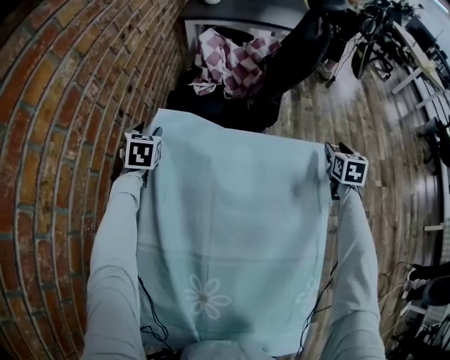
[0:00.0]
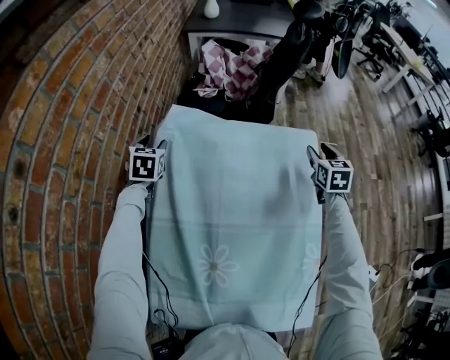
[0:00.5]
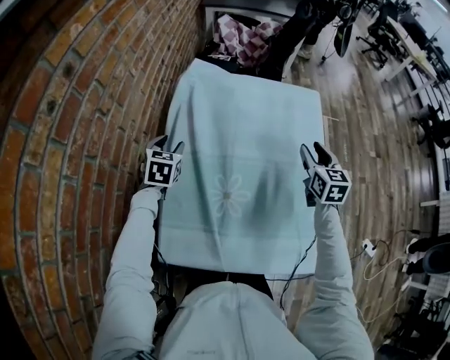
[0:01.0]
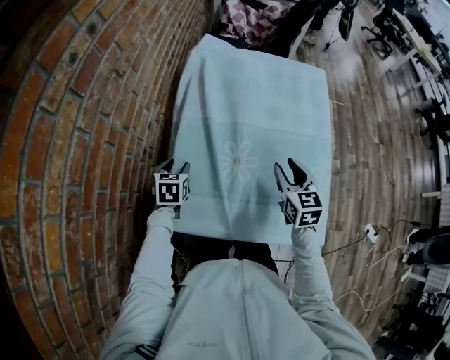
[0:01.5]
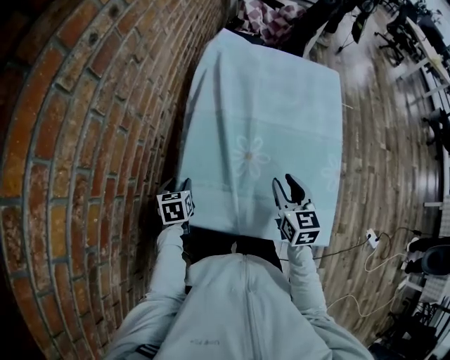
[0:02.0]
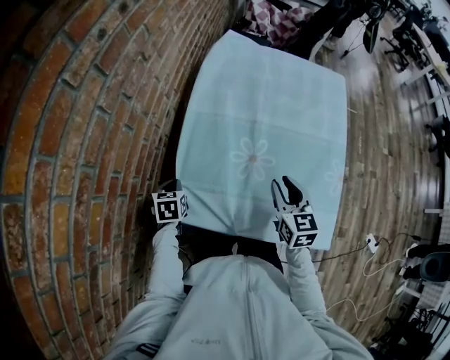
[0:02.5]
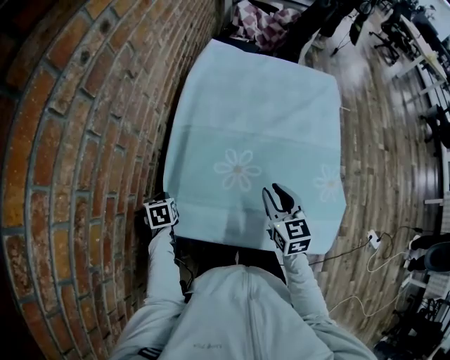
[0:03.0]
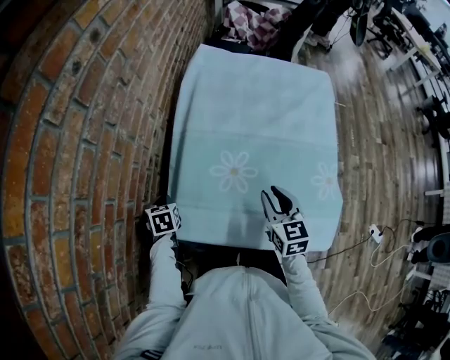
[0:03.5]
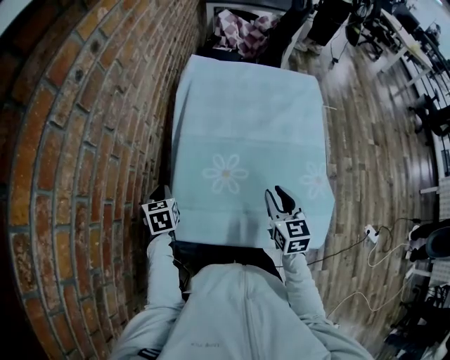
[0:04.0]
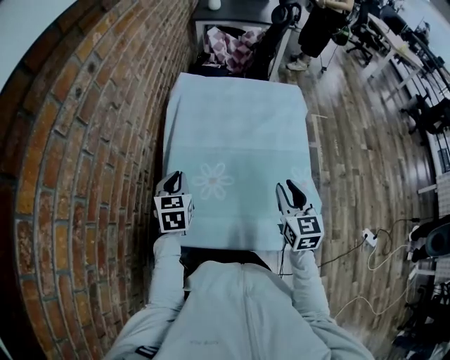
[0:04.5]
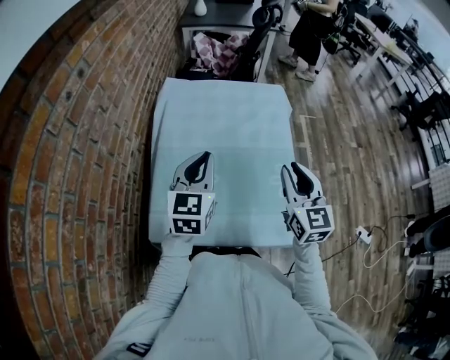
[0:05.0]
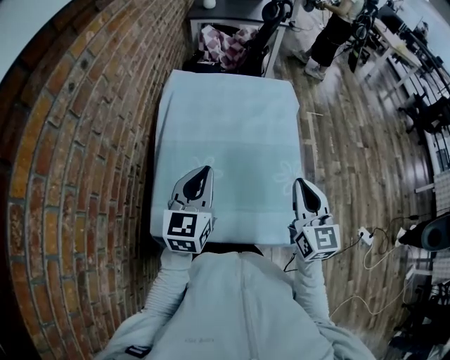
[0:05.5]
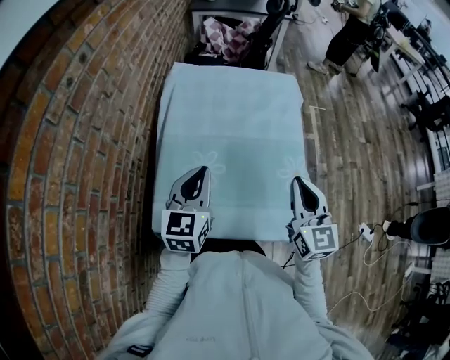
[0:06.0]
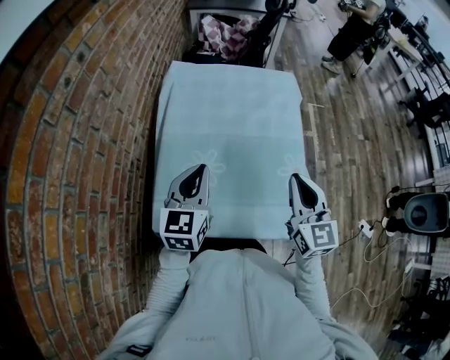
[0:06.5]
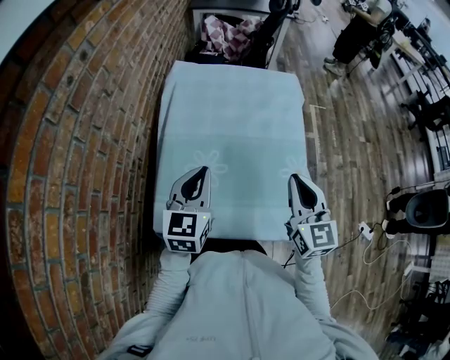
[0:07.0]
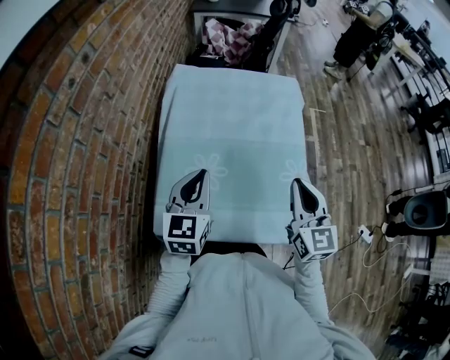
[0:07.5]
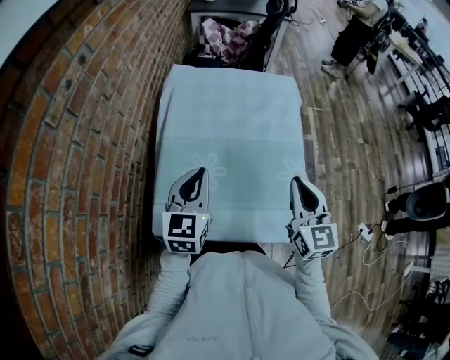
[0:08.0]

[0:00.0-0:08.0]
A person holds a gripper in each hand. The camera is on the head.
0:00.0 to 0:02.0: The pair of grippers is taken backward and to the left, some 60 cm. The right gripper changes its angle by some 30 degrees; the left gripper turns by approximately 30 degrees.
0:02.0 to 0:04.0: The left gripper heads upward, covering approximately 5 cm, and closes.
0:04.0 to 0:06.0: The right gripper heads upward and to the right, covering approximately 20 cm, changes its angle by some 20 degrees, and closes its fingers; the left gripper travels to the right and upward by roughly 30 cm, and points its fingers roughly 30 degrees further upward.
0:06.0 to 0:08.0: The grippers make only small movements.

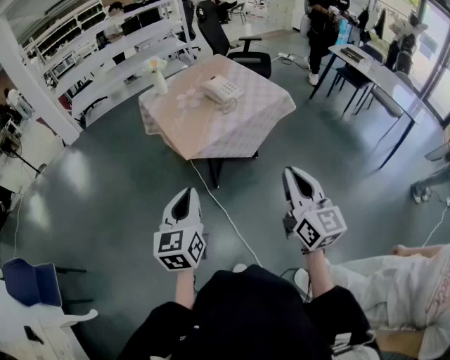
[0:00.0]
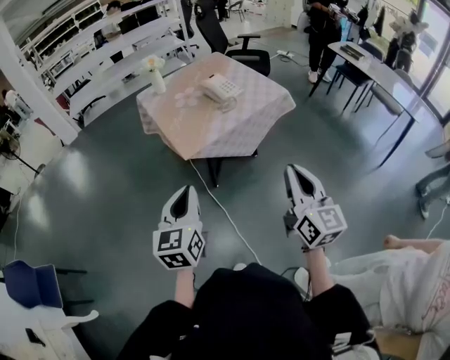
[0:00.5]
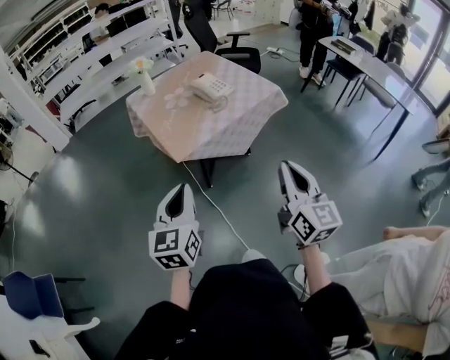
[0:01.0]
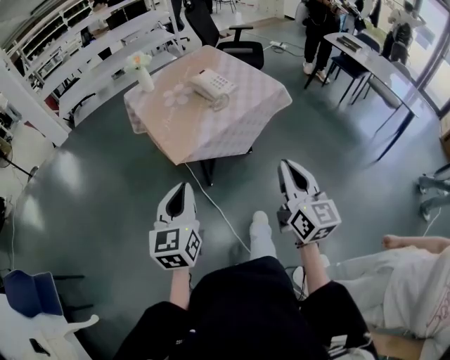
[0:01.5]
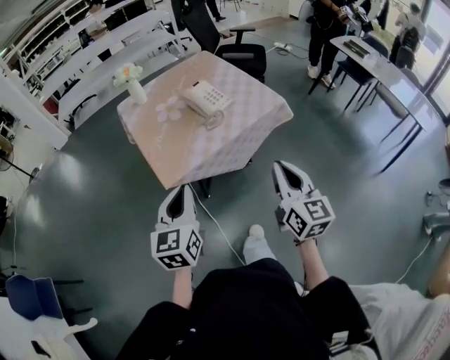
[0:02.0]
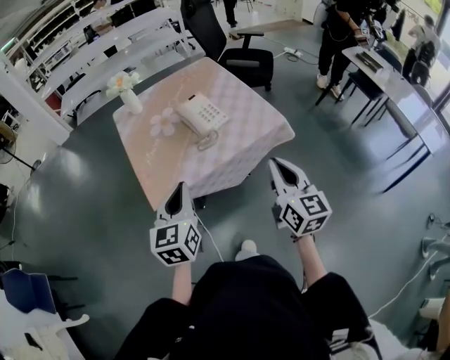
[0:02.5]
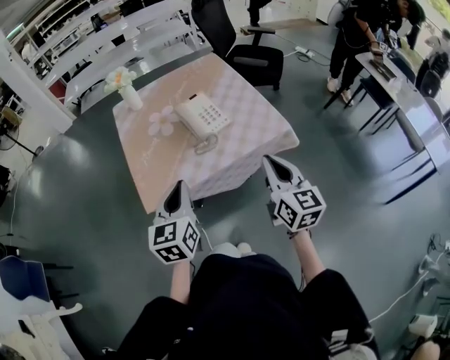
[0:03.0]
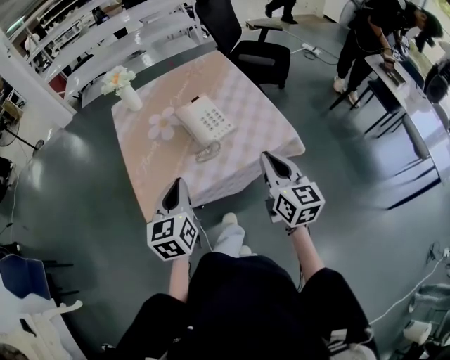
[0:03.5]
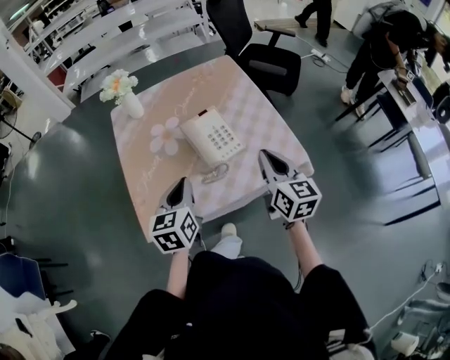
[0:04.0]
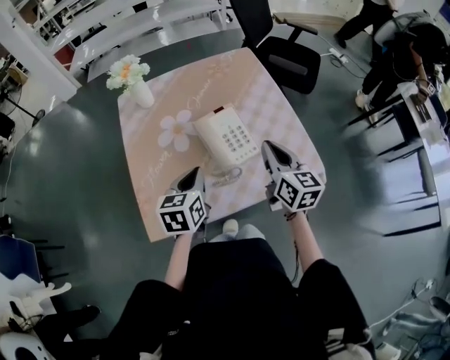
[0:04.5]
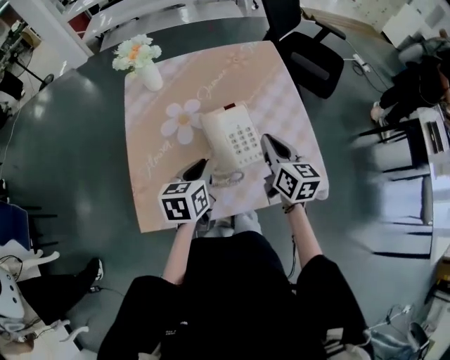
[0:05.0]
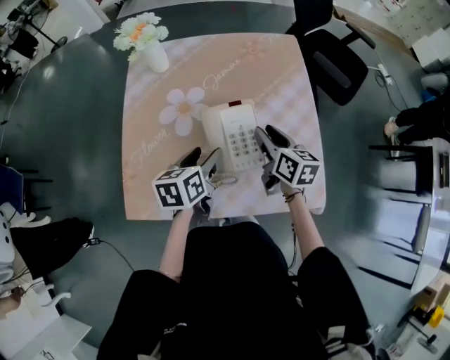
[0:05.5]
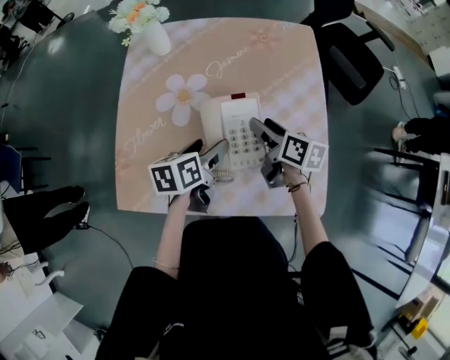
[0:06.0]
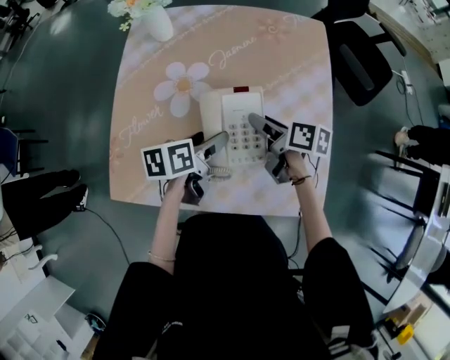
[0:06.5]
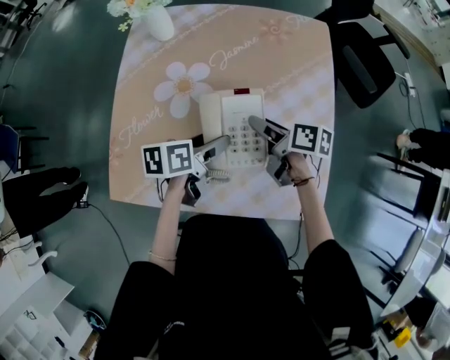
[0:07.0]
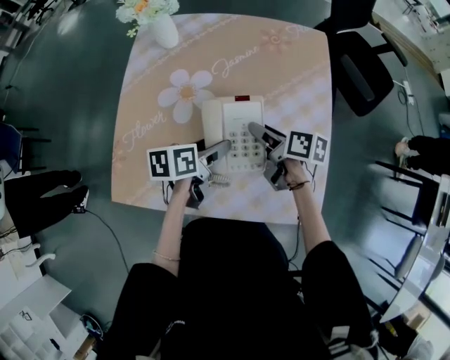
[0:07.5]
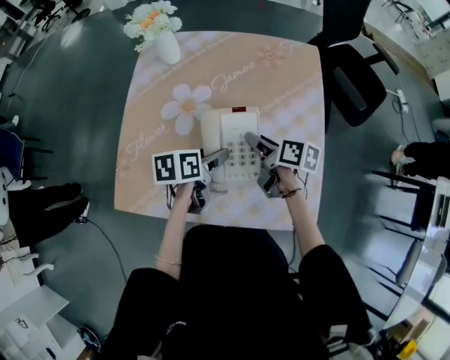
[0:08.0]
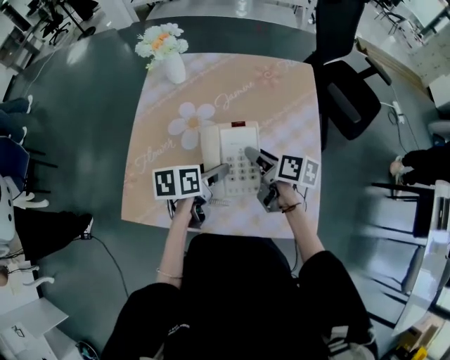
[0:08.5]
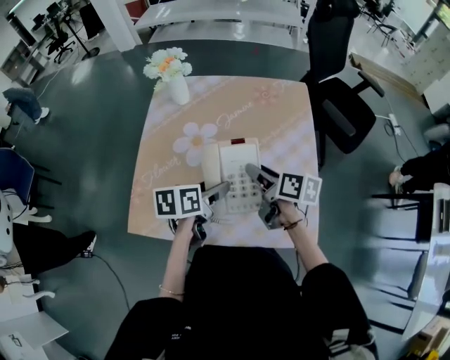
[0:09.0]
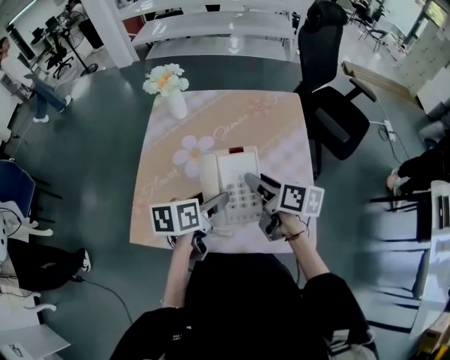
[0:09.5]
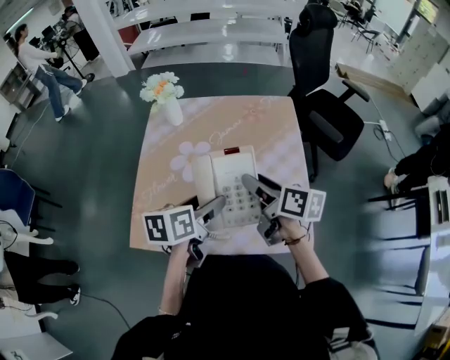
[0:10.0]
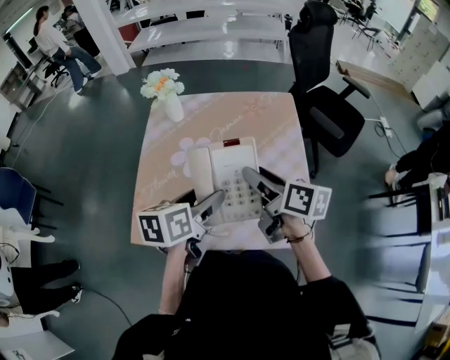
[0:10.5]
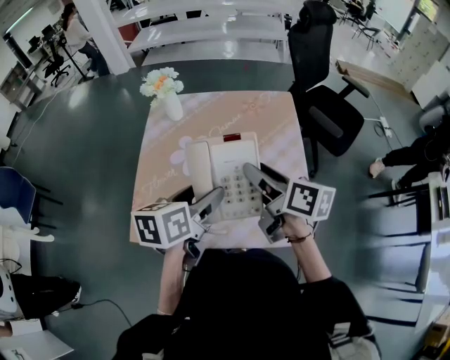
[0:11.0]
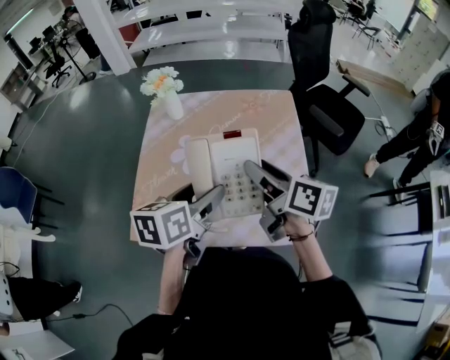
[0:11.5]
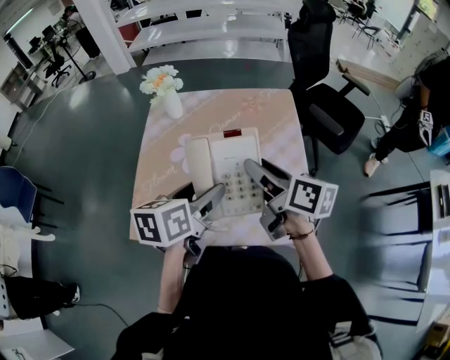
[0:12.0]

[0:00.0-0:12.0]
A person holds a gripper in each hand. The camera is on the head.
0:00.0 to 0:02.0: The grippers both shift forward by approximately 20 cm.
0:02.0 to 0:04.0: Both grippers move forward, about 35 cm.
0:04.0 to 0:06.0: The right gripper shifts roughly 30 cm forward and downward, swivels some 50 degrees, and opens. The left gripper goes about 20 cm forward, downward and to the right, changes its angle by about 40 degrees, and opens.
0:08.0 to 0:10.0: The grippers both shift upward by some 15 cm.
0:10.0 to 0:12.0: The right gripper travels upward by approximately 5 cm.

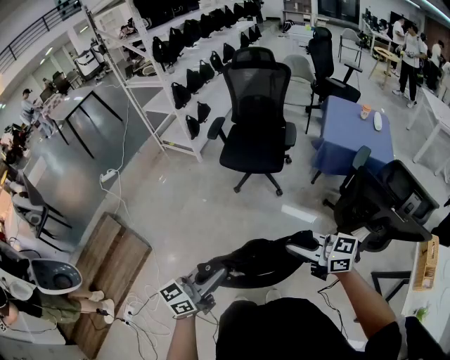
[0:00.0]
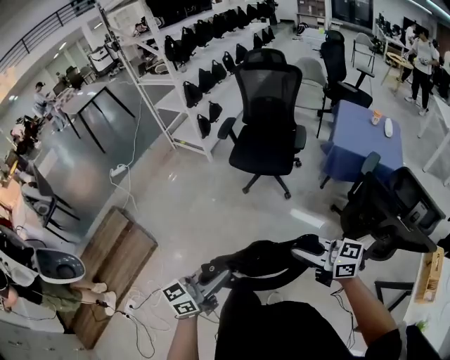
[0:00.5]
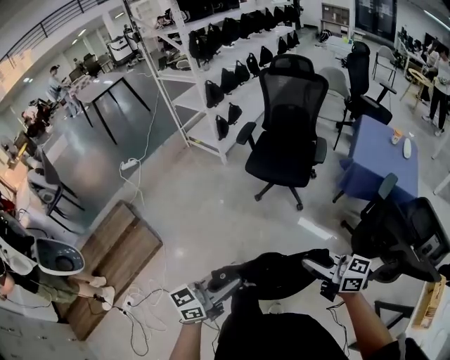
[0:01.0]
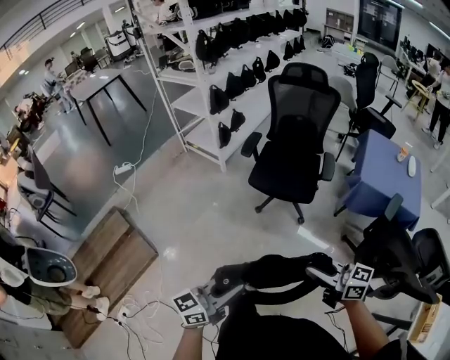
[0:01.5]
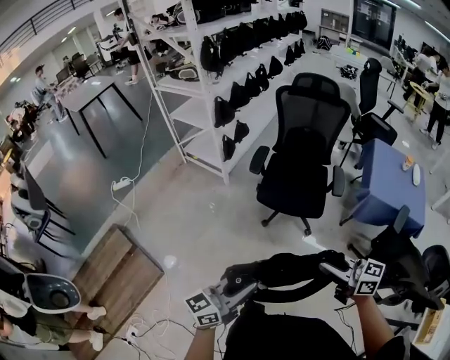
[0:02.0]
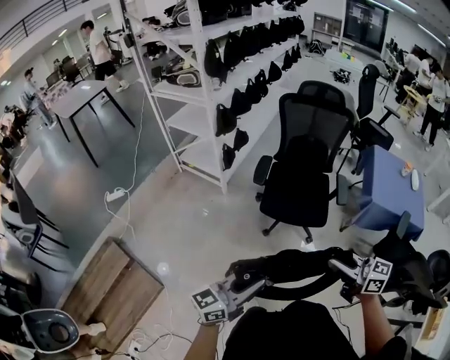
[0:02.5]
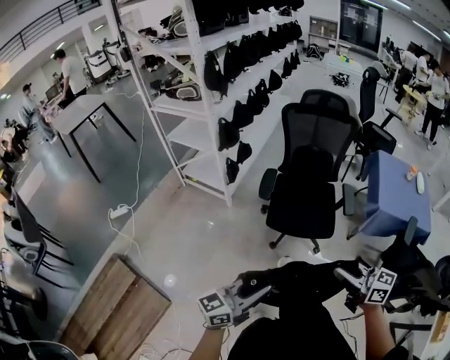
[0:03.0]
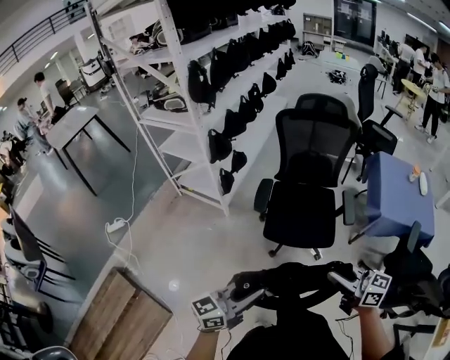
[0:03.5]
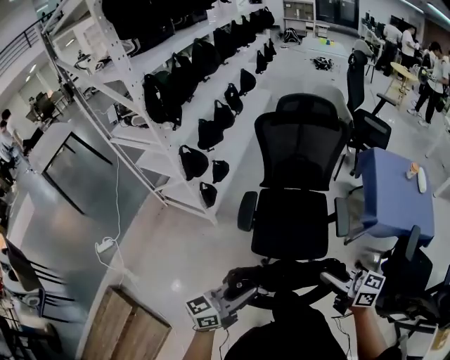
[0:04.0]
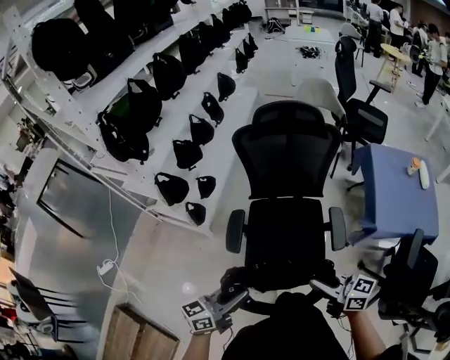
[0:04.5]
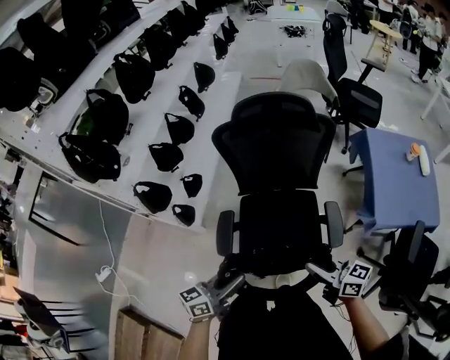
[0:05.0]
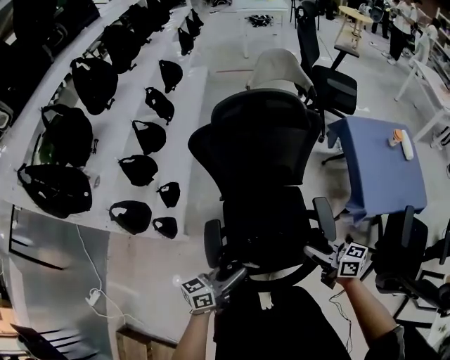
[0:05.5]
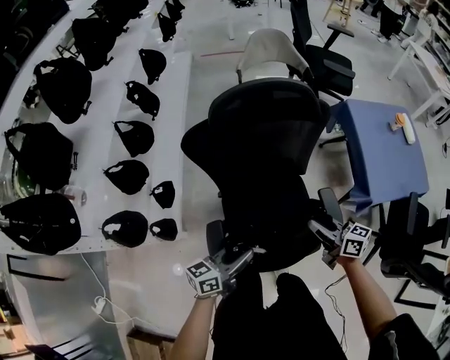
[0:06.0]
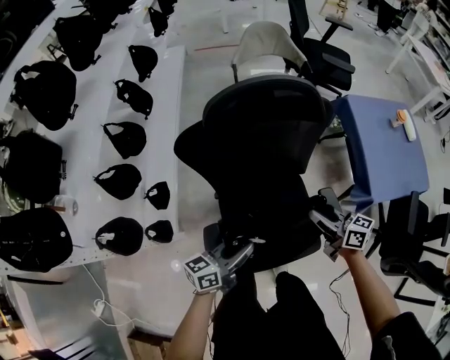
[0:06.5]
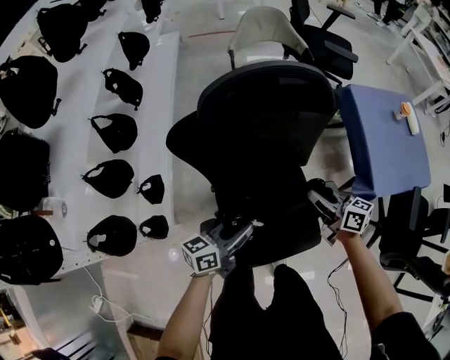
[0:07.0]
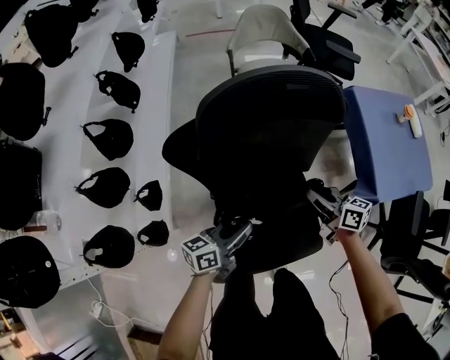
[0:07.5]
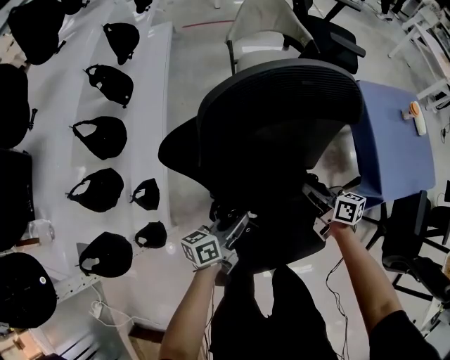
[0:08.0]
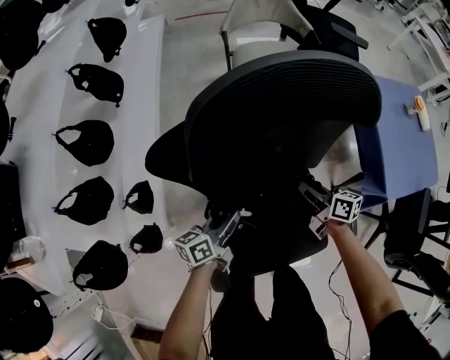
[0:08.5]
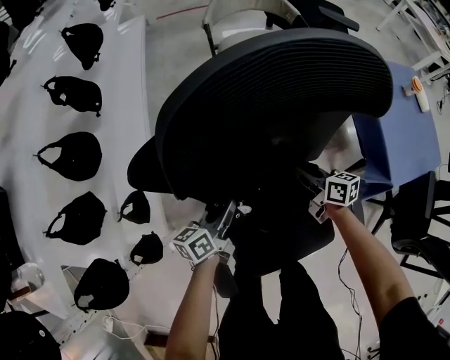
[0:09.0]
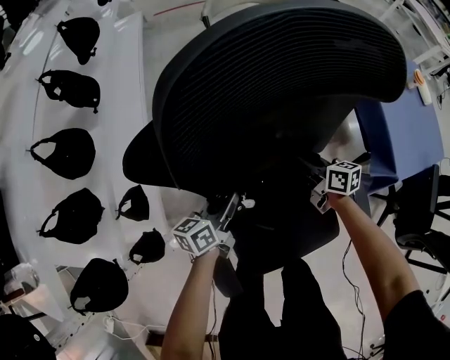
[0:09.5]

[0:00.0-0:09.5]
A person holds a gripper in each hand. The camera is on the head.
0:00.0 to 0:02.0: Both grippers move forward, approximately 30 cm.
0:02.0 to 0:04.0: Both grippers travel together forward, some 35 cm.
0:04.0 to 0:05.5: The left gripper goes about 35 cm forward, and changes its angle by roughly 20 degrees. The right gripper moves forward and downward, roughly 35 cm.
0:05.5 to 0:07.5: Both grippers move forward and downward, about 25 cm.
0:07.5 to 0:09.5: Both grippers travel together downward and forward, roughly 20 cm.
